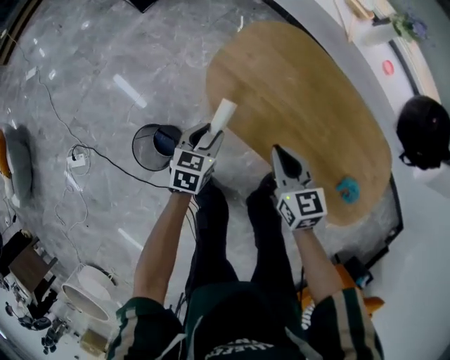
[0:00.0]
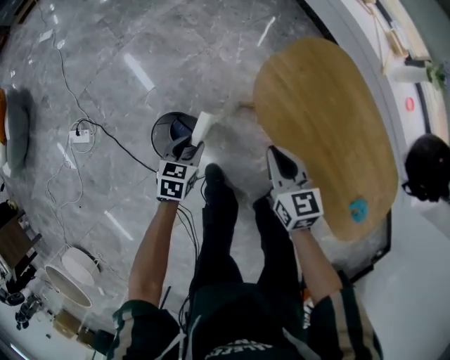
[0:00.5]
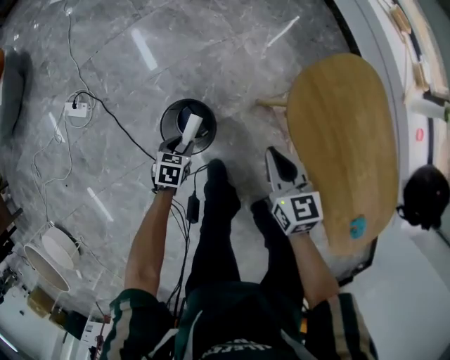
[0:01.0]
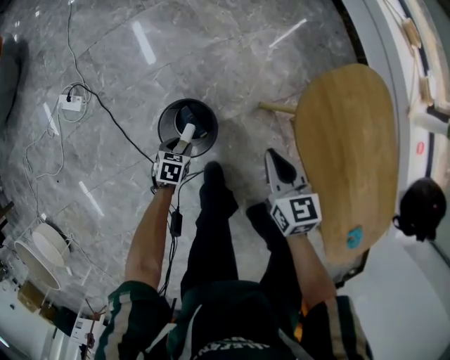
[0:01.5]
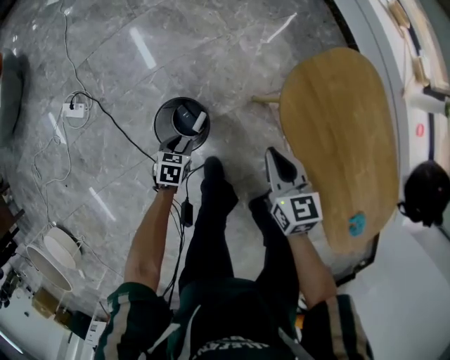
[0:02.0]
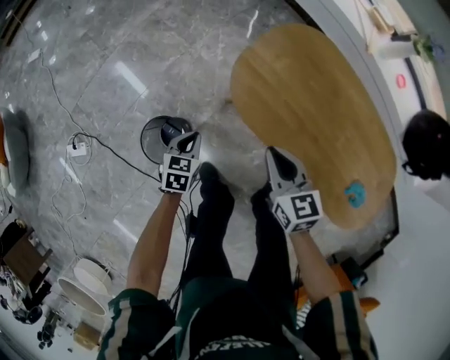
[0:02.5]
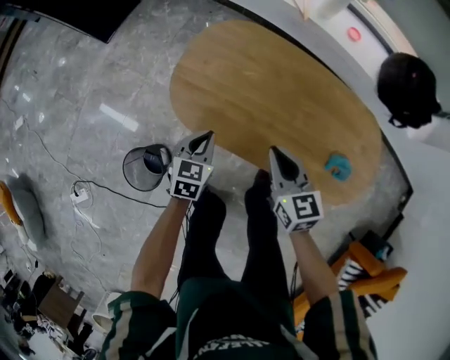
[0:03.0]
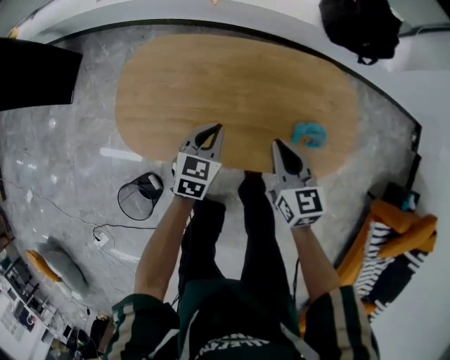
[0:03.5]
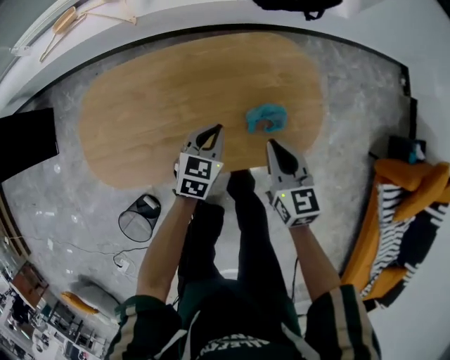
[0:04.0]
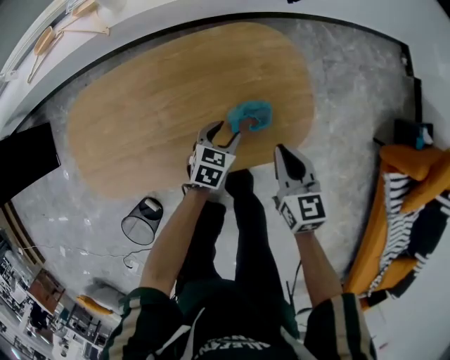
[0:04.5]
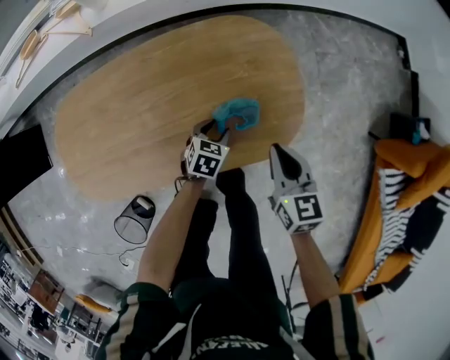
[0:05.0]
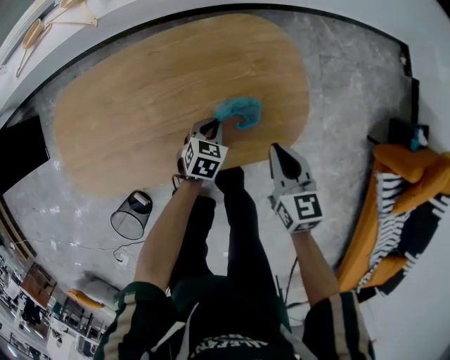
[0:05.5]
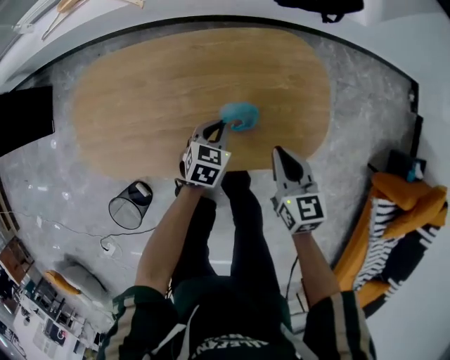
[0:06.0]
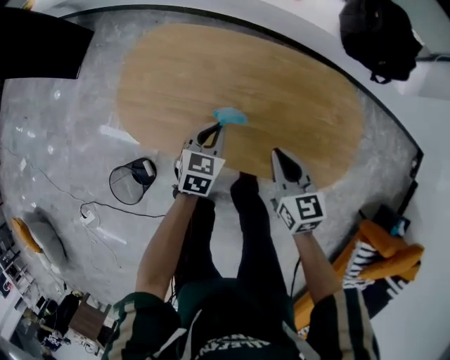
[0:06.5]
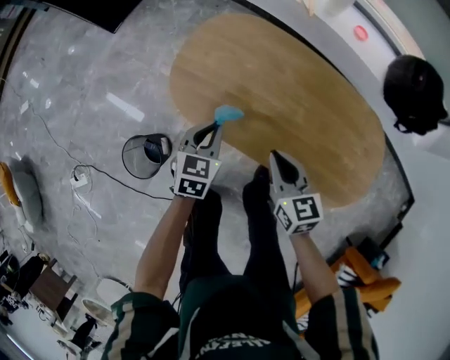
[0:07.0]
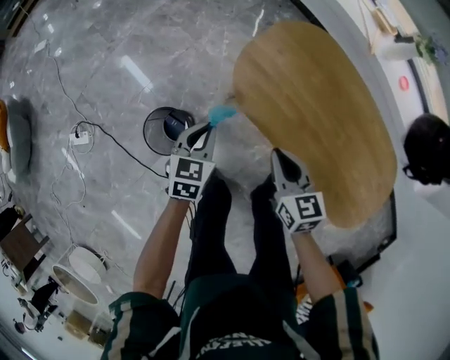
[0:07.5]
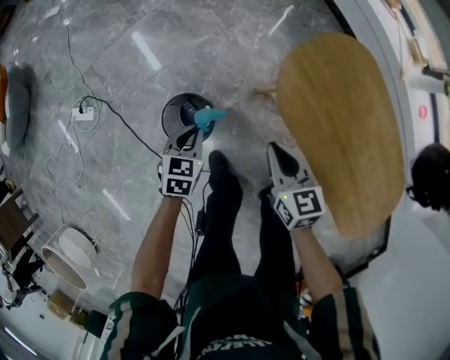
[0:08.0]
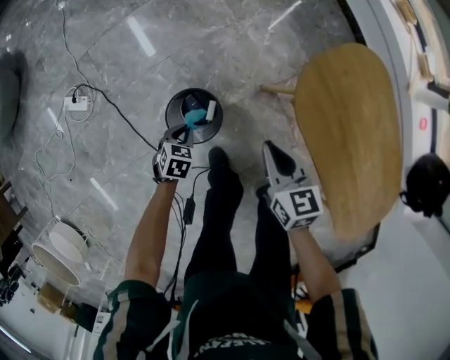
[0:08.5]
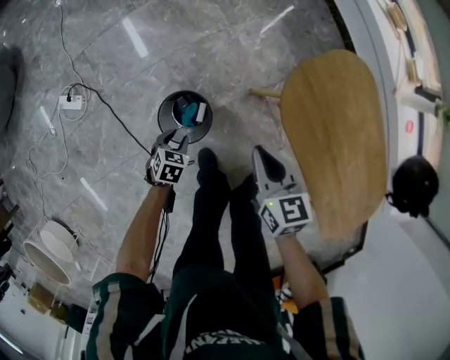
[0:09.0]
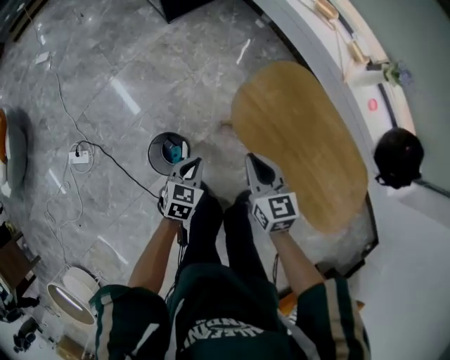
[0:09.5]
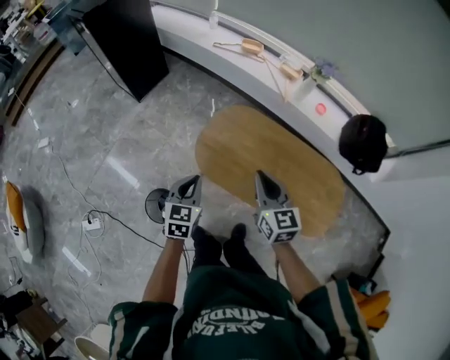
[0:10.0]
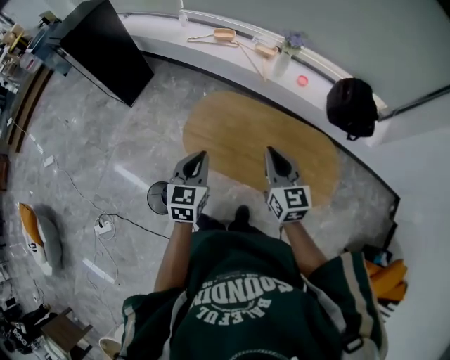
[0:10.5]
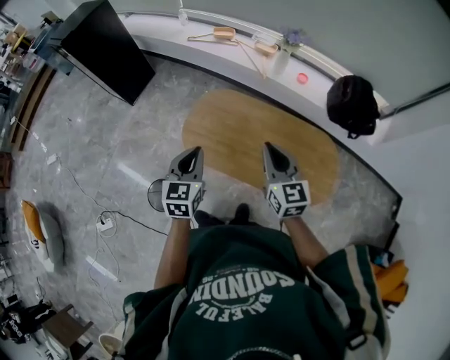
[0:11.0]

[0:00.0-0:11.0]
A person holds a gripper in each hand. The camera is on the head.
0:00.0 to 0:02.0: The right gripper heads to the left, covering roughly 25 cm. The left gripper moves to the left and downward, roughly 35 cm, and rotates some 30 degrees.
0:02.0 to 0:03.5: Both grippers are carried some 50 cm. The right gripper swivels roughly 50 degrees. The left gripper rotates around the line of its fingers by approximately 50 degrees, clockwise from behind, and closes up.
0:03.5 to 0:05.5: The left gripper changes place by approximately 35 cm, rotates some 30 degrees, and opens and closes again; the right gripper shifts by approximately 30 cm, and rotates roughly 20 degrees.
0:05.5 to 0:07.5: The pair of grippers is taken approximately 60 cm. The right gripper turns by approximately 60 degrees. Meanwhile the left gripper turns by some 60 degrees.
0:07.5 to 0:09.0: The left gripper goes approximately 30 cm to the left and downward, rotates about 30 degrees, and opens. Meanwhile the right gripper shifts roughly 20 cm to the left.
0:09.0 to 0:11.0: The left gripper moves upward, roughly 60 cm, tilts its fingers approximately 40 degrees upward, and closes its fingers. The right gripper is displaced upward by some 40 cm, and changes its angle by about 50 degrees.

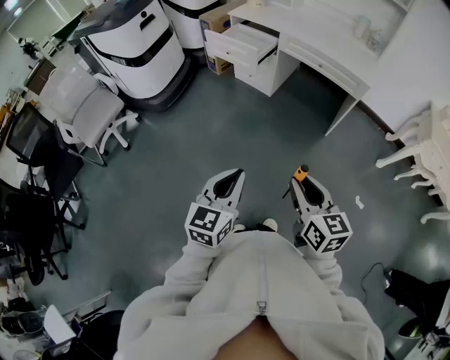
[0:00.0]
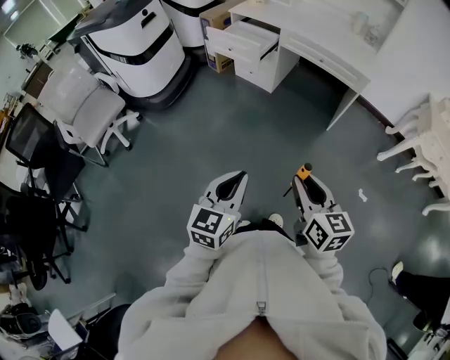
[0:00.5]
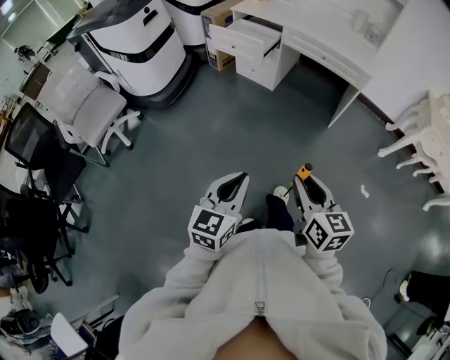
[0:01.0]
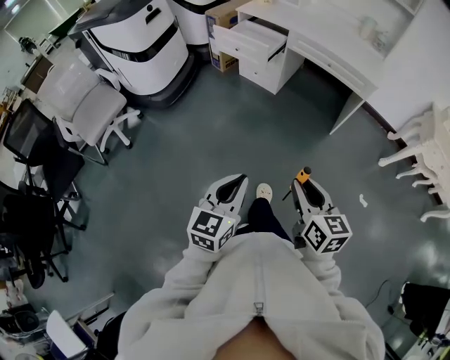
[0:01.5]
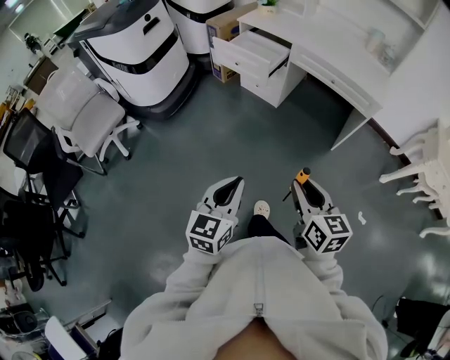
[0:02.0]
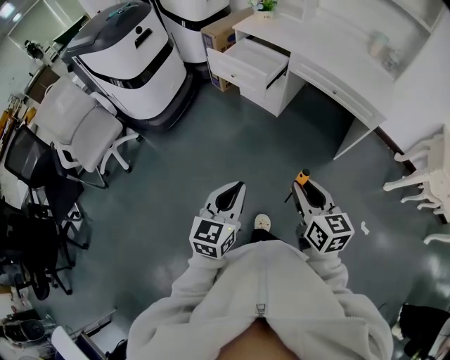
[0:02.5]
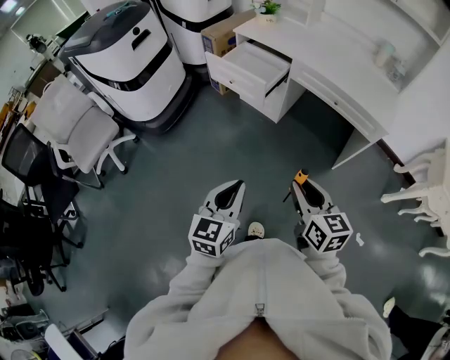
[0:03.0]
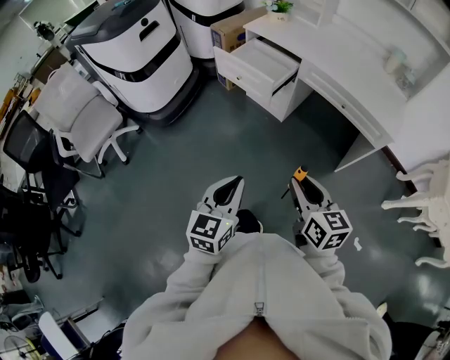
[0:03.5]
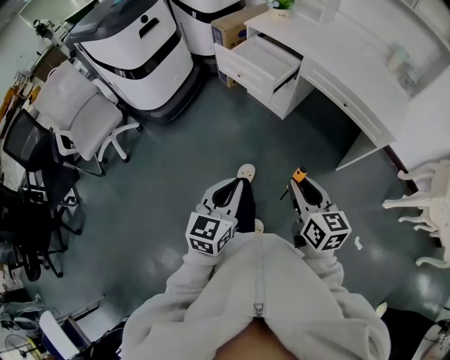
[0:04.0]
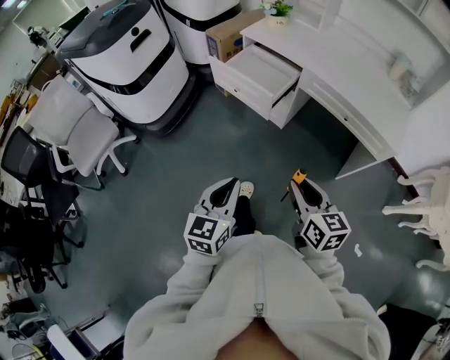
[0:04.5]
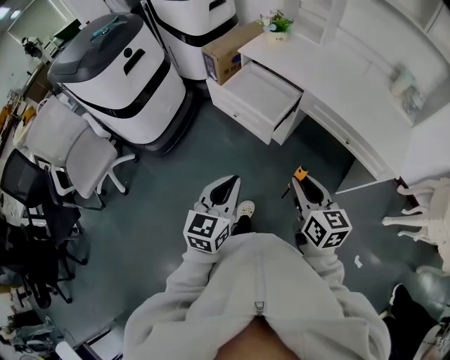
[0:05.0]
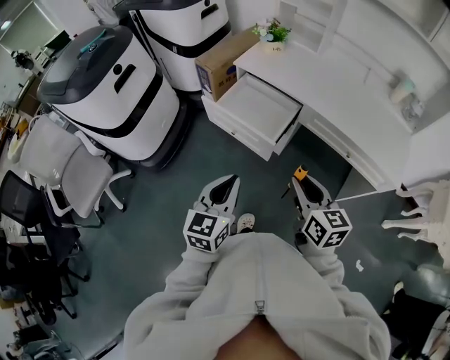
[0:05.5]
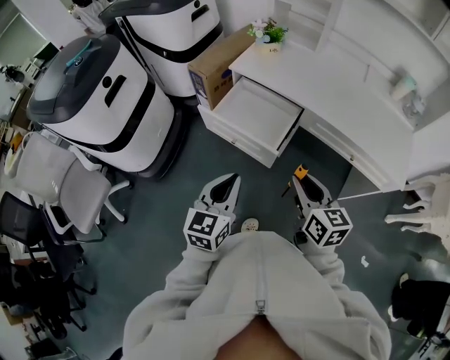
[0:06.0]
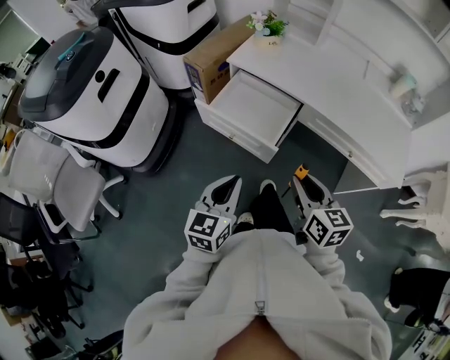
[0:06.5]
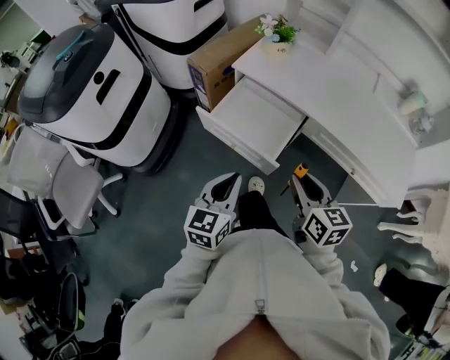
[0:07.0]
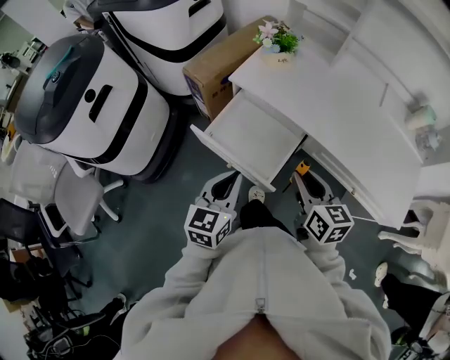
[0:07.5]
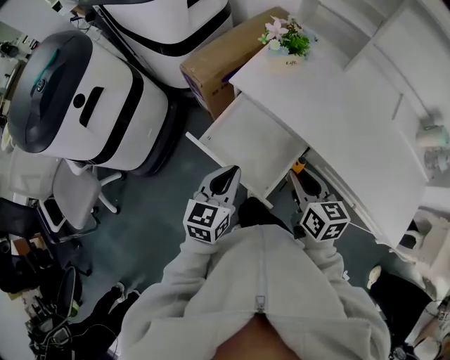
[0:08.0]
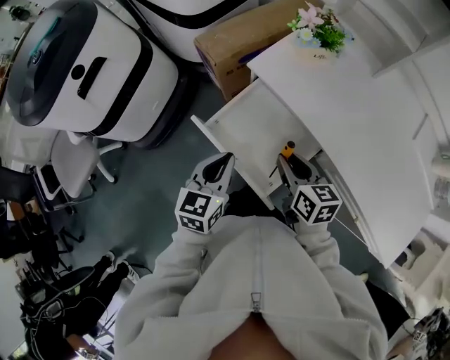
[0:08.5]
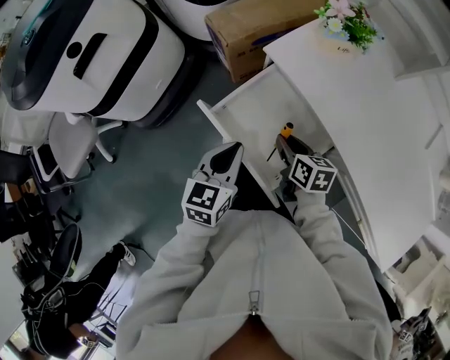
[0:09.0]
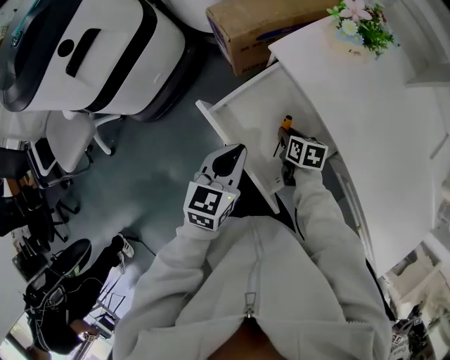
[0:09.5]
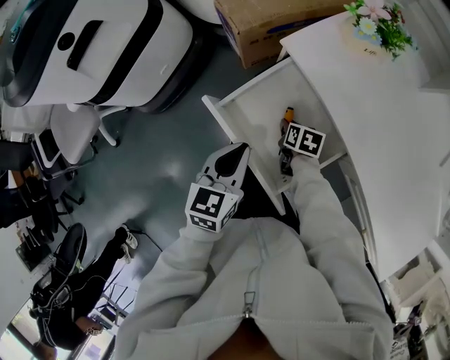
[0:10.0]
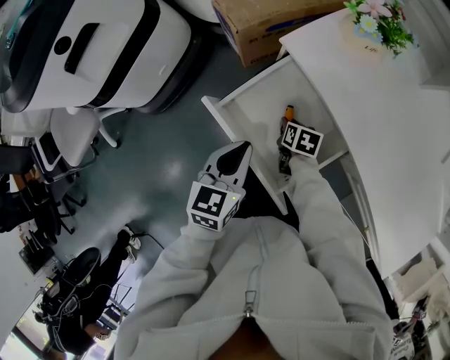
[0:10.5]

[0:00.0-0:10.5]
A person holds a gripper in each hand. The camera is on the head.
0:00.0 to 0:02.0: Both grippers move forward, about 10 cm.
0:02.0 to 0:04.0: The grippers both shift forward by about 15 cm.
0:04.0 to 0:06.5: The two grippers go approximately 35 cm forward.
0:06.5 to 0:08.5: The right gripper heads forward and downward, covering some 30 cm, and turns by some 20 degrees. Meanwhile the left gripper is displaced forward by approximately 25 cm.
0:08.5 to 0:10.5: The right gripper moves downward, about 25 cm, and angles its fingers downward, by roughly 30 degrees.

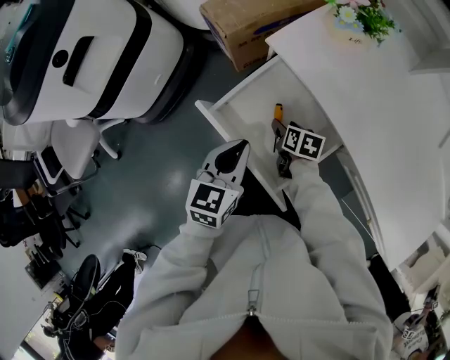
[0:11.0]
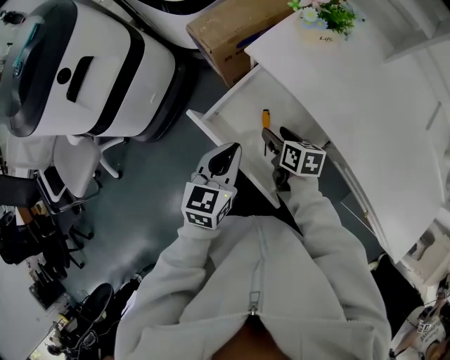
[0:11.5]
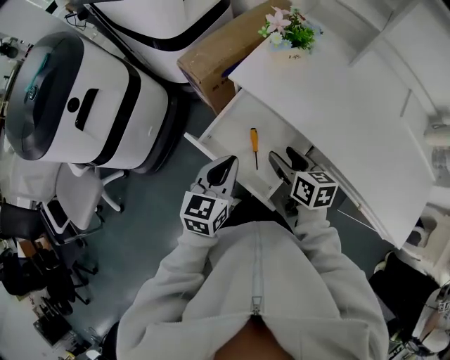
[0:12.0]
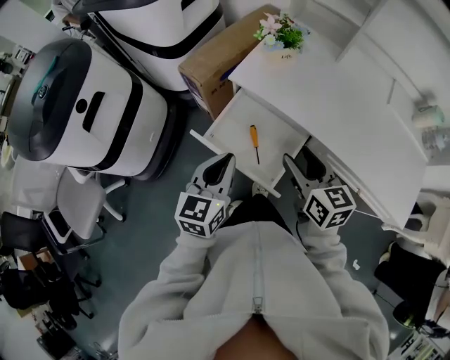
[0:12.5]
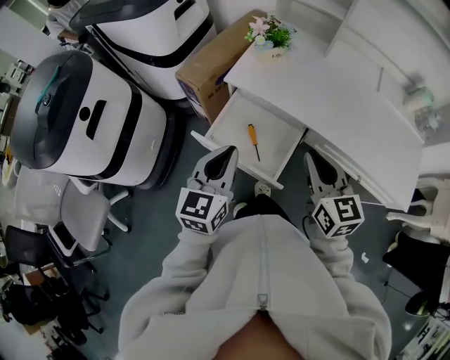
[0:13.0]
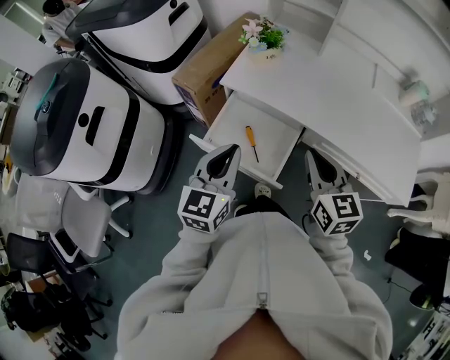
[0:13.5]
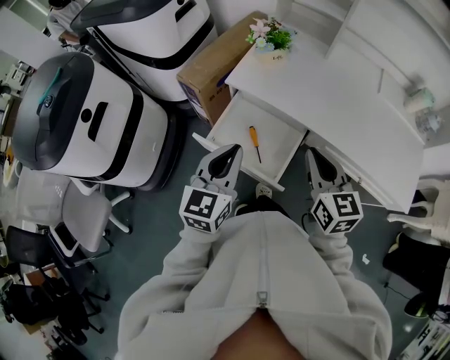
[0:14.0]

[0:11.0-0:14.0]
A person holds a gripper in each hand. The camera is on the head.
0:11.0 to 0:12.5: The left gripper heads upward, covering some 15 cm. The right gripper shifts about 35 cm upward, and points its fingers approximately 30 degrees further upward.
0:12.5 to 0:14.0: The left gripper changes place by approximately 5 cm, while the right gripper moves roughly 5 cm, and closes.

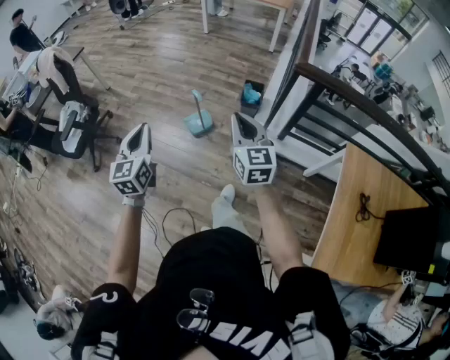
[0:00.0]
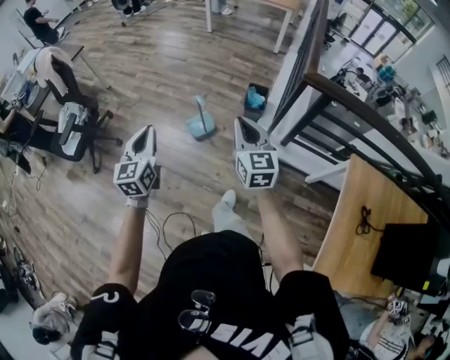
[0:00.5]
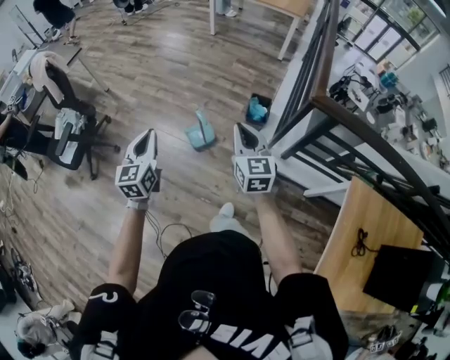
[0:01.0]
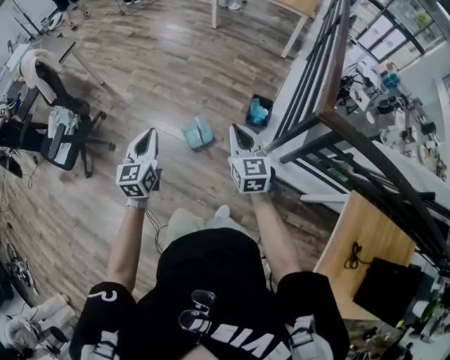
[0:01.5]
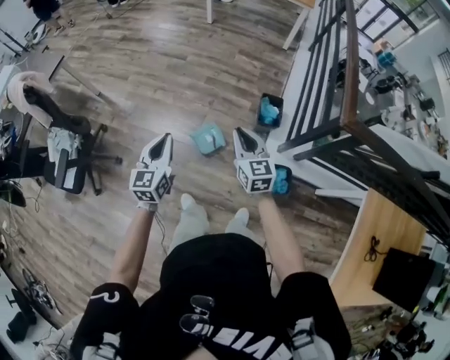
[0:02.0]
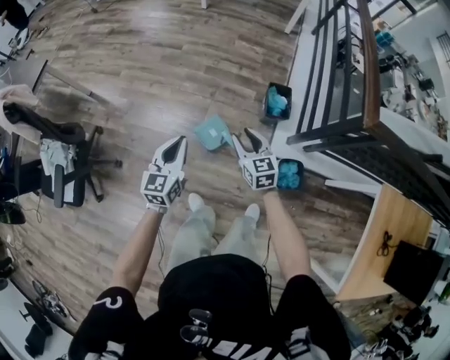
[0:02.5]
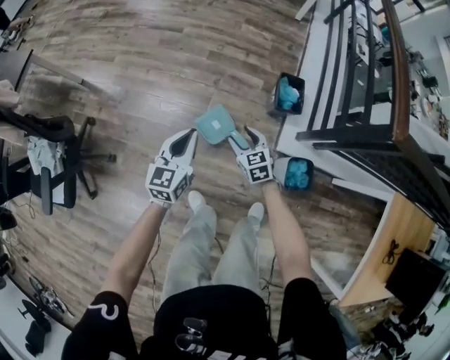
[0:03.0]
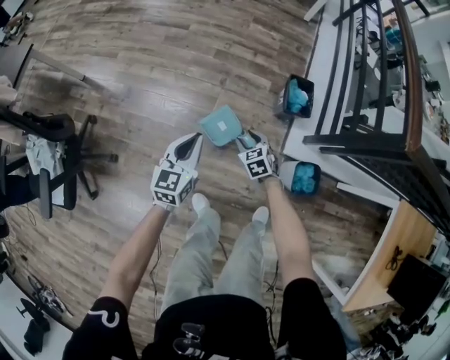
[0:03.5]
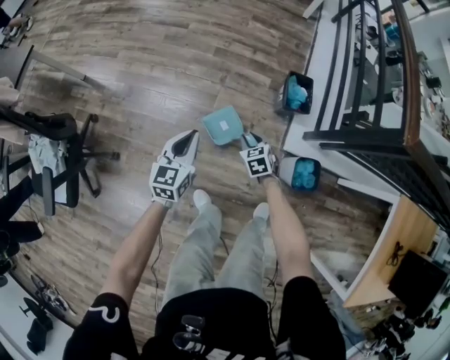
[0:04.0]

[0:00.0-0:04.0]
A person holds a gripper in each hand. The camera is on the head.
0:00.0 to 0:02.0: The grippers both shift forward by roughly 40 cm.
0:02.0 to 0:04.0: The right gripper shifts roughly 40 cm downward, points its fingers some 40 degrees further downward, and opens up, while the left gripper moves downward and forward, approximately 30 cm.
